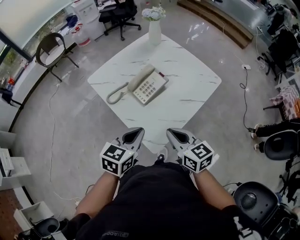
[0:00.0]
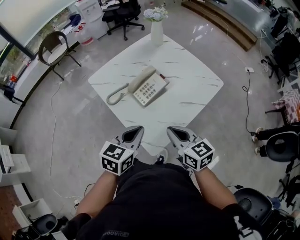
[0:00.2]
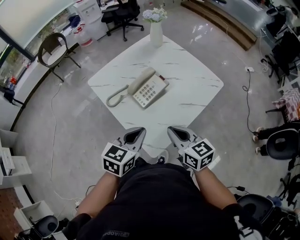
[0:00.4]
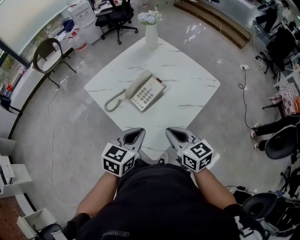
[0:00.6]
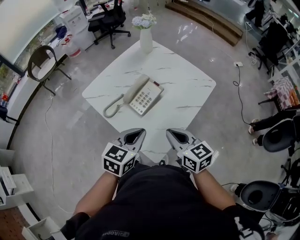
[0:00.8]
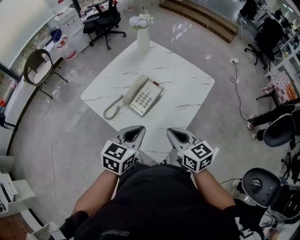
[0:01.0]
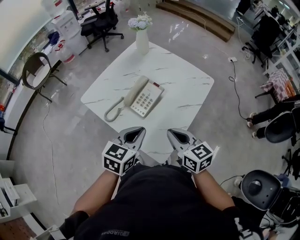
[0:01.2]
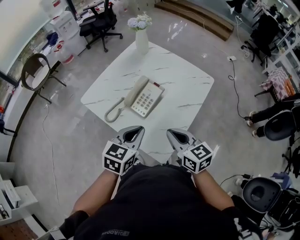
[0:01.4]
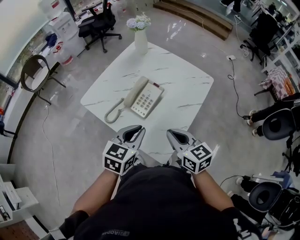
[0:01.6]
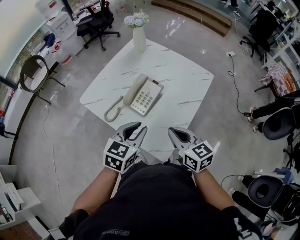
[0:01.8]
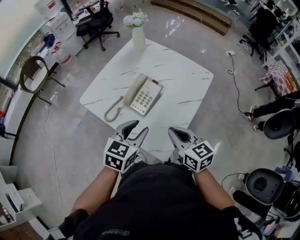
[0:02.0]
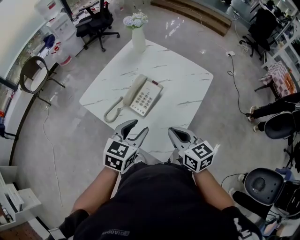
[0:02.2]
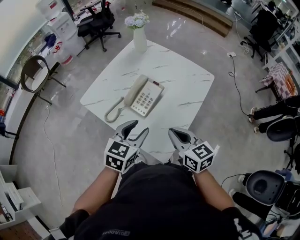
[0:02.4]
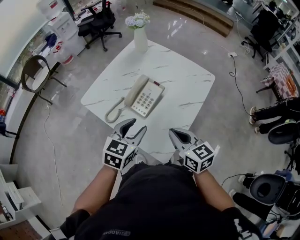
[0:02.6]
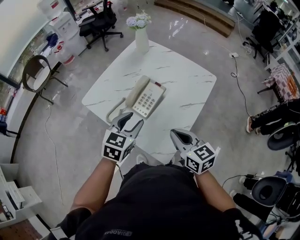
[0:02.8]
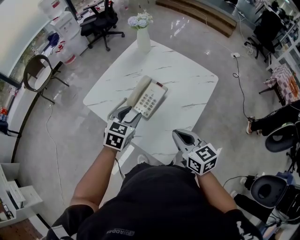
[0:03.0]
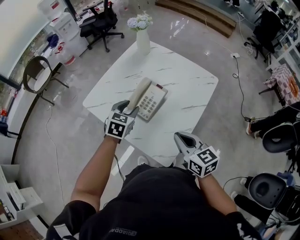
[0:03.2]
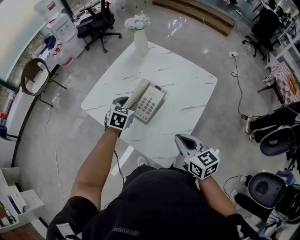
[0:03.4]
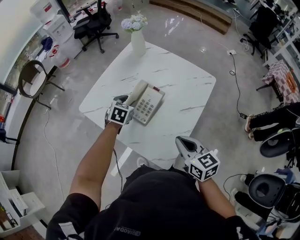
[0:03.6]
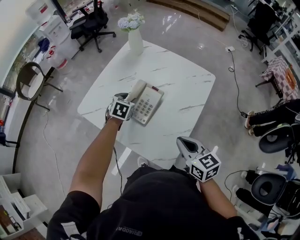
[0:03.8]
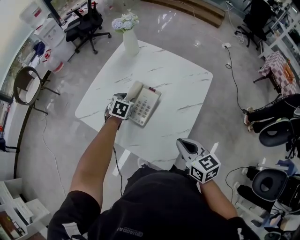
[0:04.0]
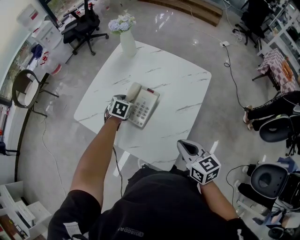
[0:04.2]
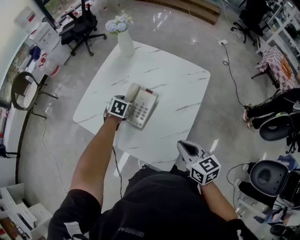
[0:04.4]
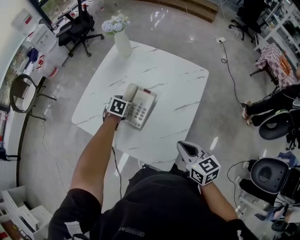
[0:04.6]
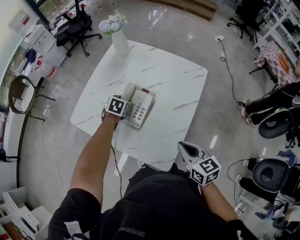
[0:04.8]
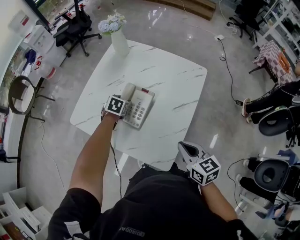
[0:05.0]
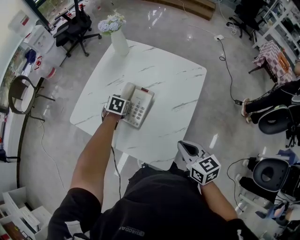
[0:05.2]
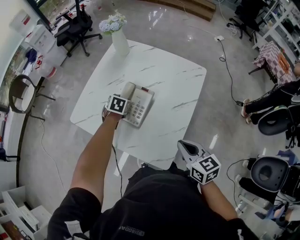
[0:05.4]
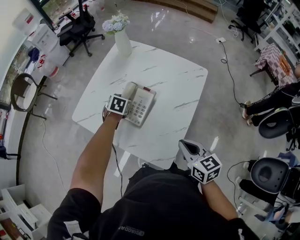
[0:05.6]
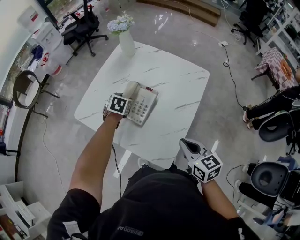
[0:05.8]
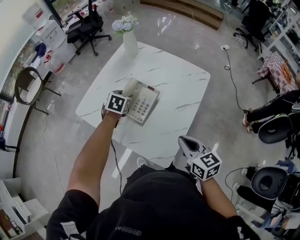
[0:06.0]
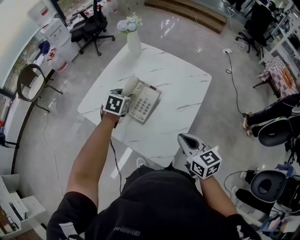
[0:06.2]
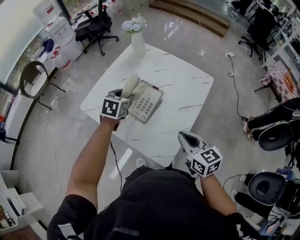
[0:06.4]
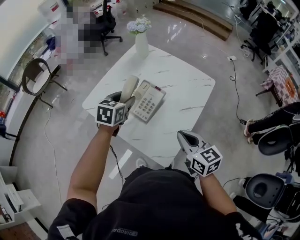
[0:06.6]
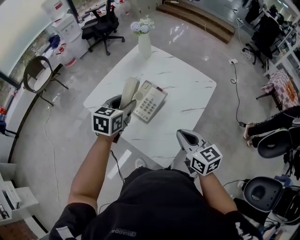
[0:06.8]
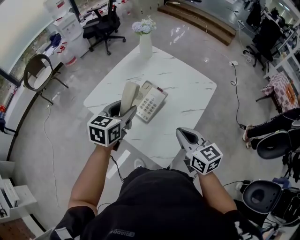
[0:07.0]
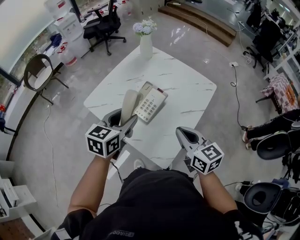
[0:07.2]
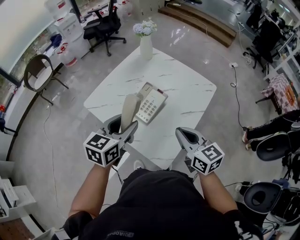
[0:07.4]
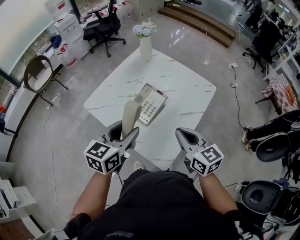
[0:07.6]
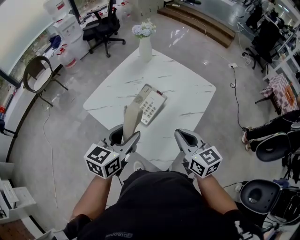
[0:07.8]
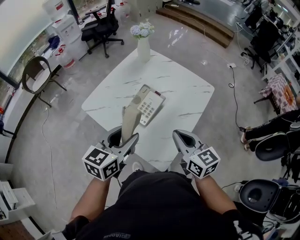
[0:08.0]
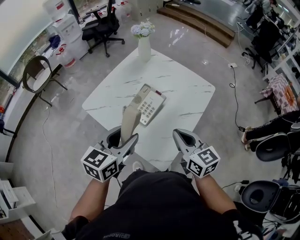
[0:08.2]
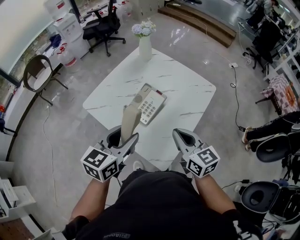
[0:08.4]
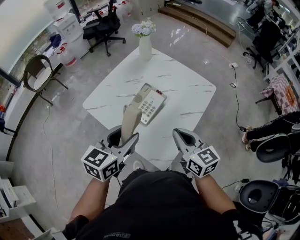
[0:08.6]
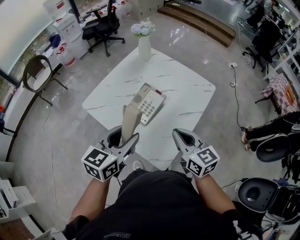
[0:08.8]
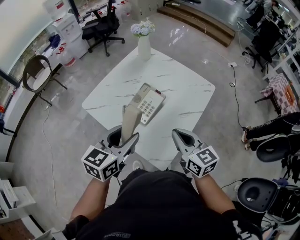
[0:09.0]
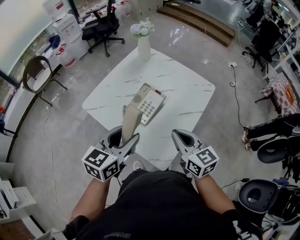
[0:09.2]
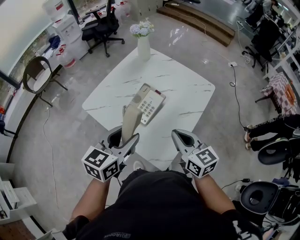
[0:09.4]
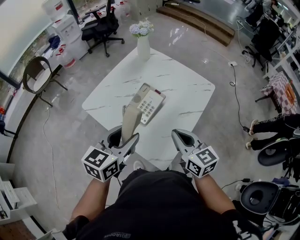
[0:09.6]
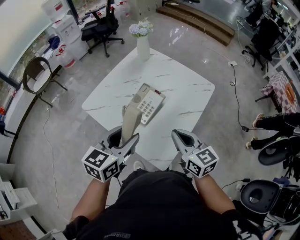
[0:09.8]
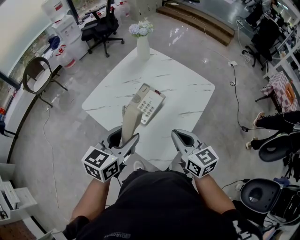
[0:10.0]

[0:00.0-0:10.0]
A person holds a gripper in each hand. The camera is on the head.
0:00.0 to 0:01.4: The two grippers go some 5 cm forward.
0:01.4 to 0:02.8: The left gripper moves forward, some 5 cm, and opens.
0:02.8 to 0:04.2: The left gripper shifts approximately 25 cm forward and downward, and rotates approximately 20 degrees.
0:04.2 to 0:05.8: There are only small adjustments of the grippers.
0:05.8 to 0:07.2: The left gripper goes approximately 25 cm upward and backward, and tips its fingers upward by approximately 30 degrees; the right gripper moves upward, approximately 5 cm.
0:07.2 to 0:08.6: The left gripper is displaced backward by some 5 cm.
0:08.6 to 0:10.0: Both grippers stay put.

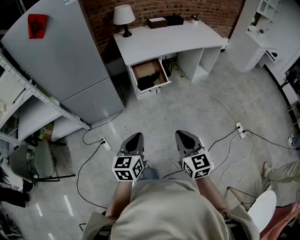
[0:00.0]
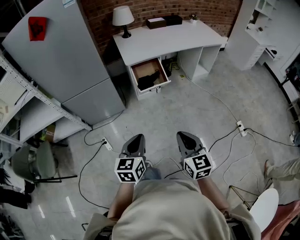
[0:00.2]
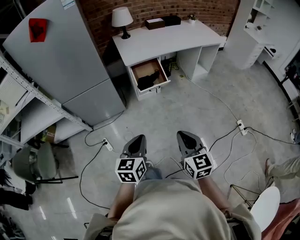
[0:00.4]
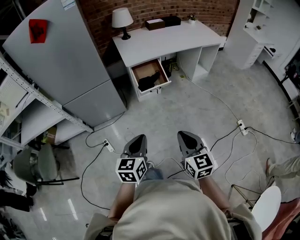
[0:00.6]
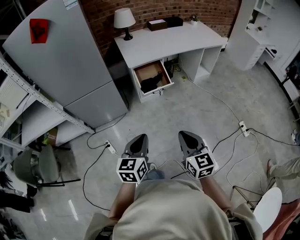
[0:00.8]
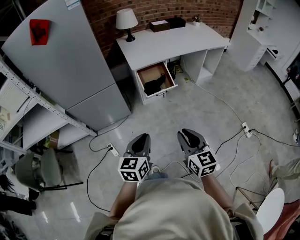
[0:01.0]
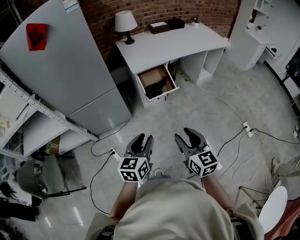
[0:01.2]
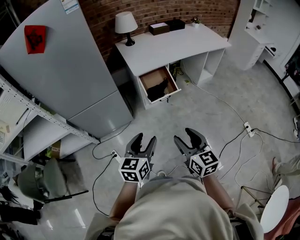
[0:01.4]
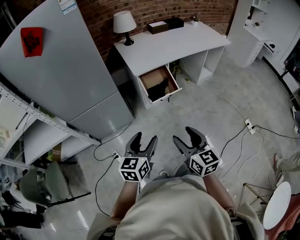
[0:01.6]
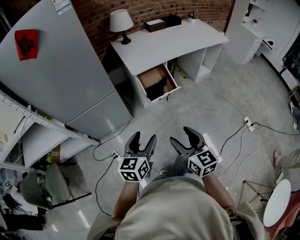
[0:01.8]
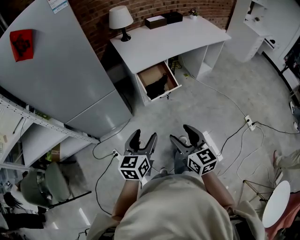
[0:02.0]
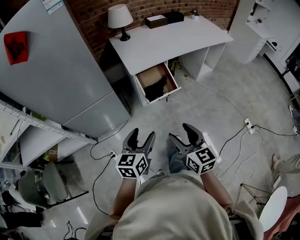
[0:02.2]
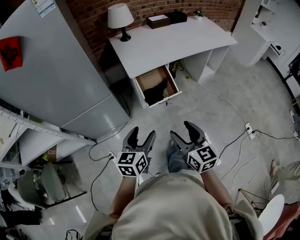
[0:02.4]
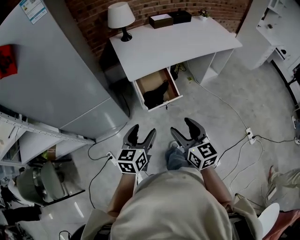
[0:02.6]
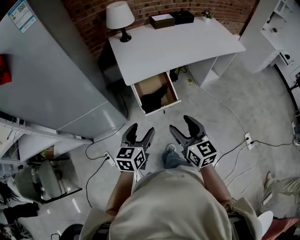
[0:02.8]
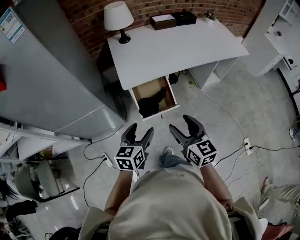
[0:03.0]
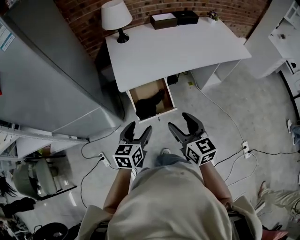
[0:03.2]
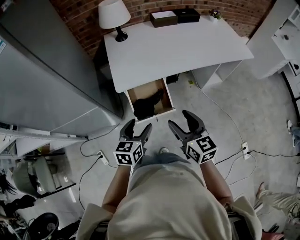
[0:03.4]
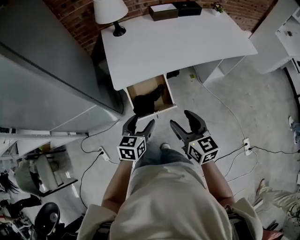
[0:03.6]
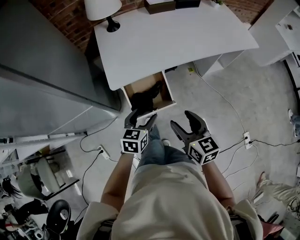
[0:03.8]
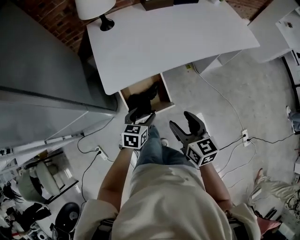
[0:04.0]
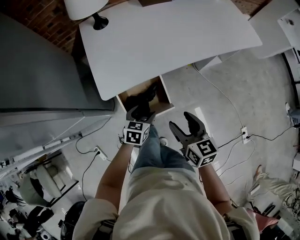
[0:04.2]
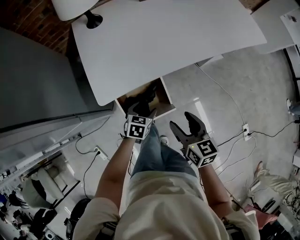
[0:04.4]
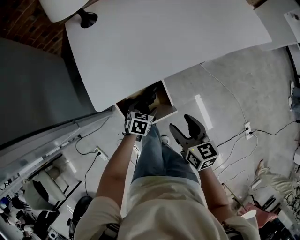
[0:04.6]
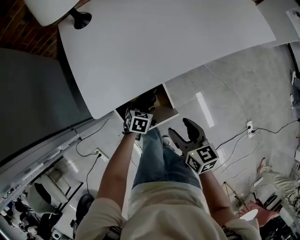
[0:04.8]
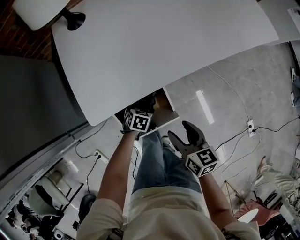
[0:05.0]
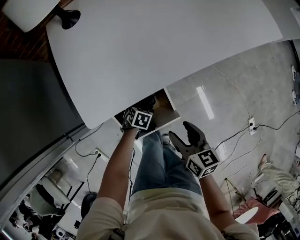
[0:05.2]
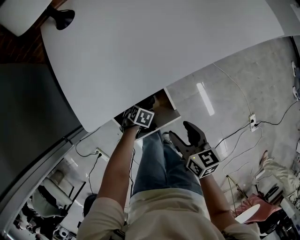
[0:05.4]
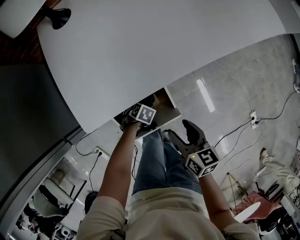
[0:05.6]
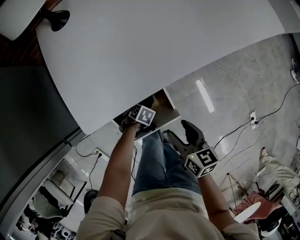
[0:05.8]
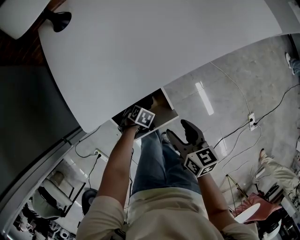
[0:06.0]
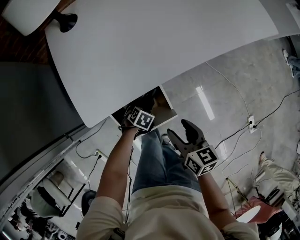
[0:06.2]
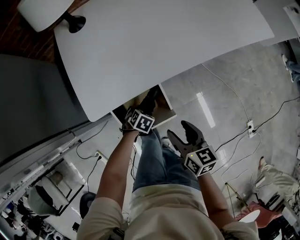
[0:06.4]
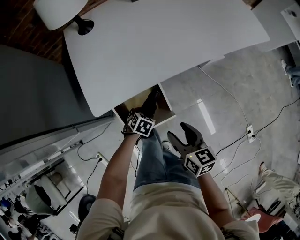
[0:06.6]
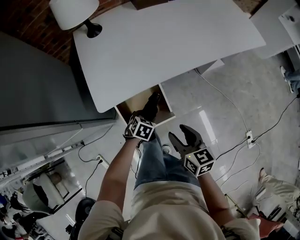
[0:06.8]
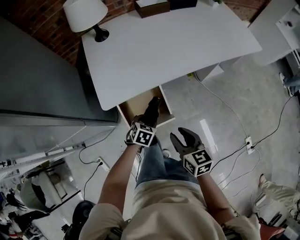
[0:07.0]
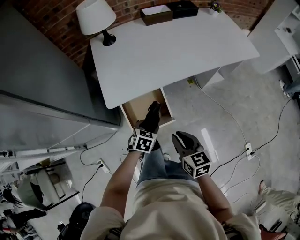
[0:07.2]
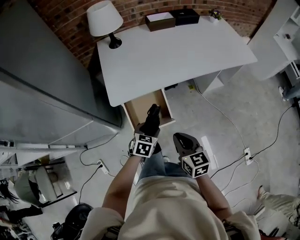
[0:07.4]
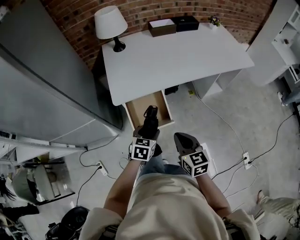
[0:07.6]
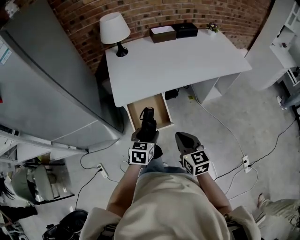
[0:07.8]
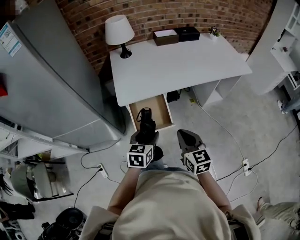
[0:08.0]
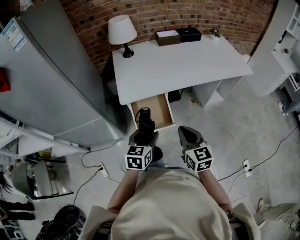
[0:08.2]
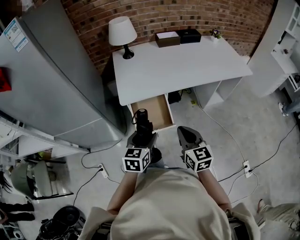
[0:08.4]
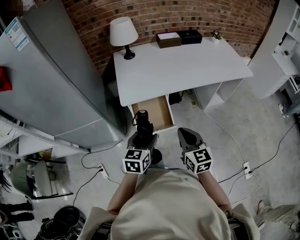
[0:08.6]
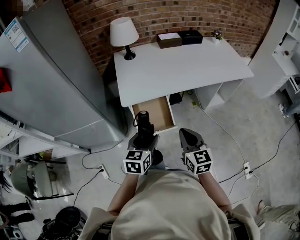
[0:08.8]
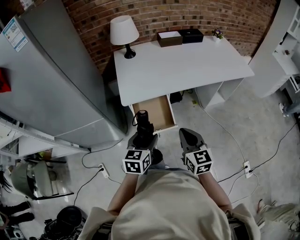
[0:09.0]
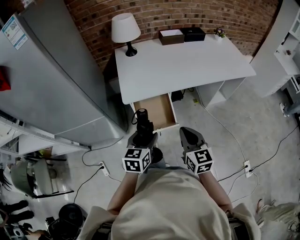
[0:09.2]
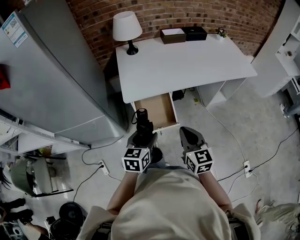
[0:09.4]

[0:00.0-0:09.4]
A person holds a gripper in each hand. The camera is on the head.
0:00.0 to 0:01.6: The right gripper is displaced to the left and forward by about 15 cm, and opens, while the left gripper moves forward and to the left, some 10 cm, and opens up.
0:01.6 to 0:03.2: The grippers both shift forward by some 30 cm.
0:03.2 to 0:04.8: The left gripper travels downward and forward by about 40 cm, and tilts its fingers some 40 degrees downward. The right gripper goes approximately 25 cm downward and forward, and rotates some 30 degrees.
0:04.8 to 0:06.2: The left gripper heads downward, covering some 5 cm, and swivels about 20 degrees.
0:06.2 to 0:07.8: The left gripper moves upward, approximately 35 cm, and angles its fingers upward, by about 40 degrees; the right gripper moves upward, about 15 cm, turns by roughly 30 degrees, and closes.
0:07.8 to 0:09.4: The left gripper moves upward, some 5 cm.

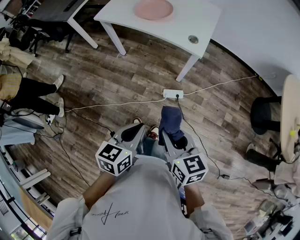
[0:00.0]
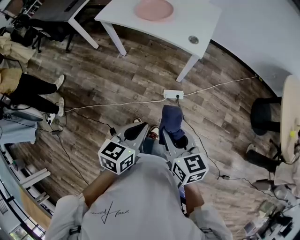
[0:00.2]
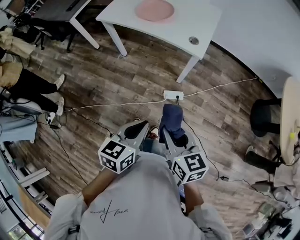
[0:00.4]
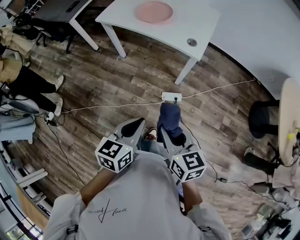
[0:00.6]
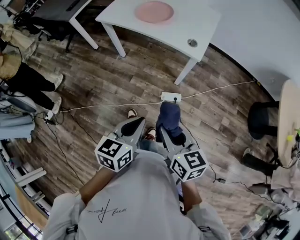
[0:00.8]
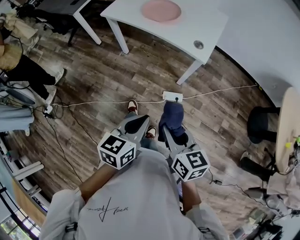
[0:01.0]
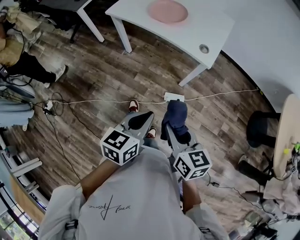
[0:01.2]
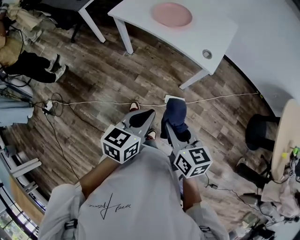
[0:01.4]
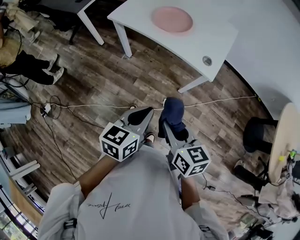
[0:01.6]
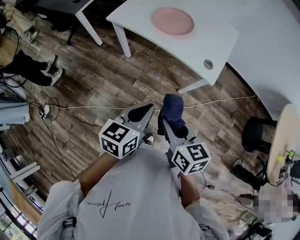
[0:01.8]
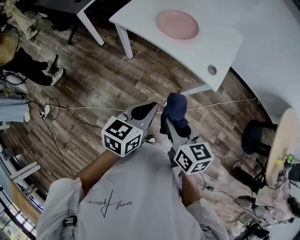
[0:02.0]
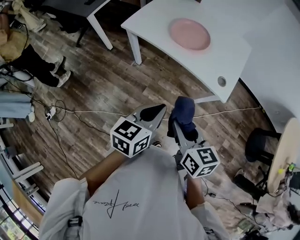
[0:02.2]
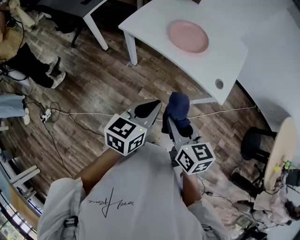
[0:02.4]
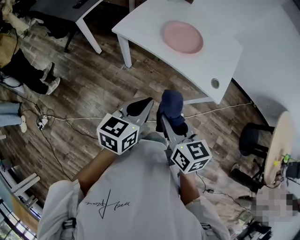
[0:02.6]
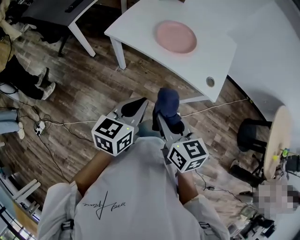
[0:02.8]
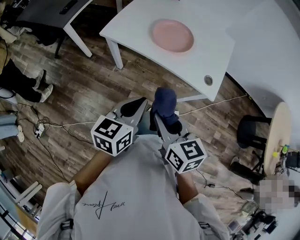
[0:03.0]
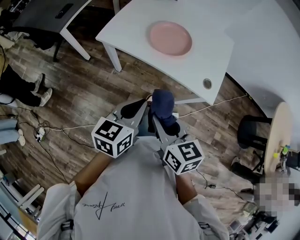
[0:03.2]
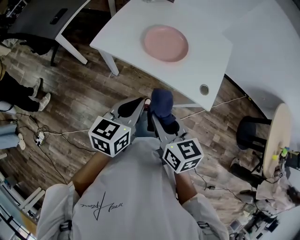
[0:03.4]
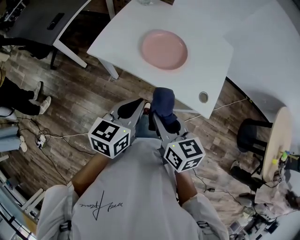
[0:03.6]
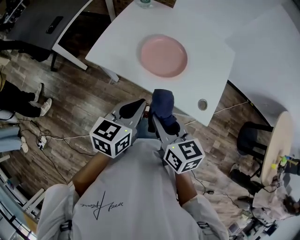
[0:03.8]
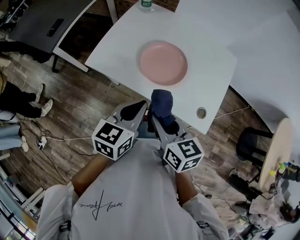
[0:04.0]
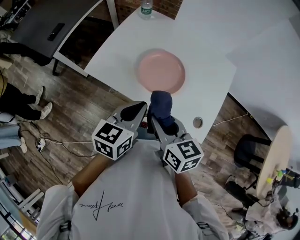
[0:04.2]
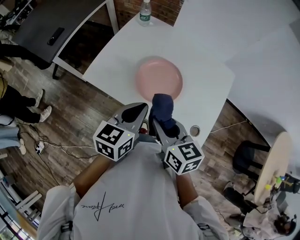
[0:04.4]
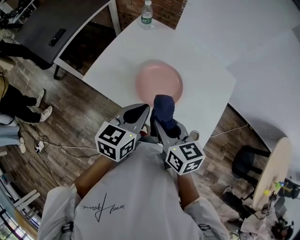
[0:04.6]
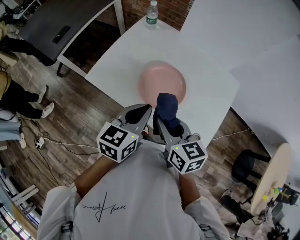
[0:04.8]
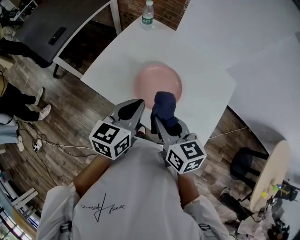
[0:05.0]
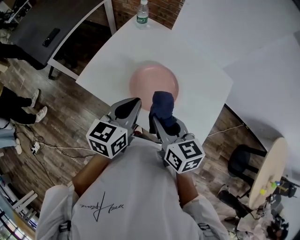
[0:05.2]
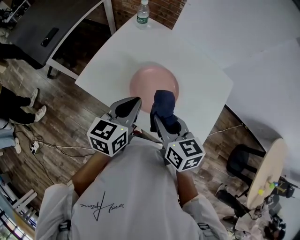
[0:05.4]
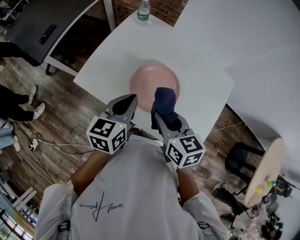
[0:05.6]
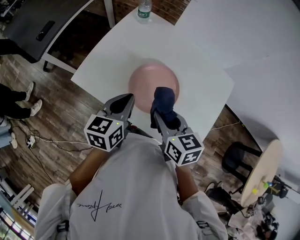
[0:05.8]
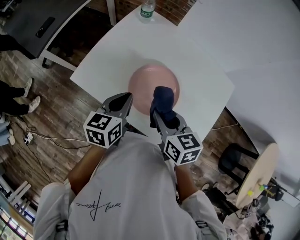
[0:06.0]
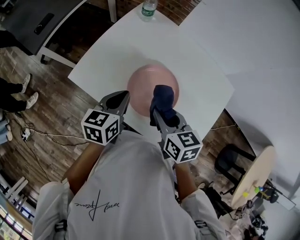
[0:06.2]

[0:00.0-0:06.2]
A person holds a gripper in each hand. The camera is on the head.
0:00.0 to 0:01.6: Both grippers travel together forward, some 15 cm.
0:01.6 to 0:03.2: Both grippers travel together forward and to the left, roughly 20 cm.
0:03.2 to 0:04.6: The grippers both shift forward by roughly 25 cm.
0:04.6 to 0:06.2: The left gripper heads forward, downward and to the left, covering some 15 cm. Meanwhile the right gripper moves forward, roughly 10 cm.
